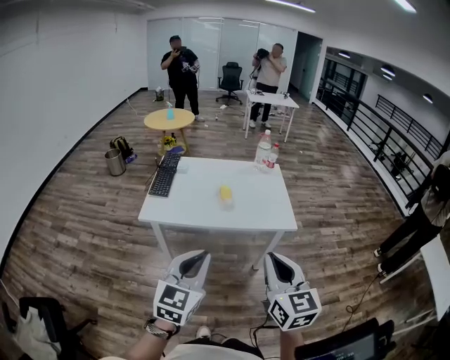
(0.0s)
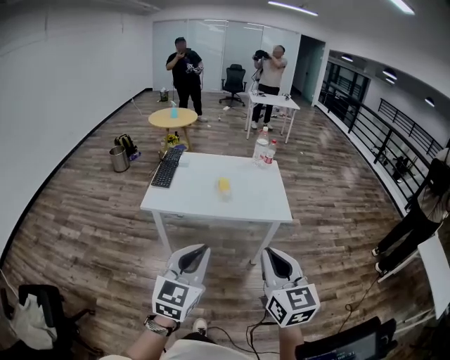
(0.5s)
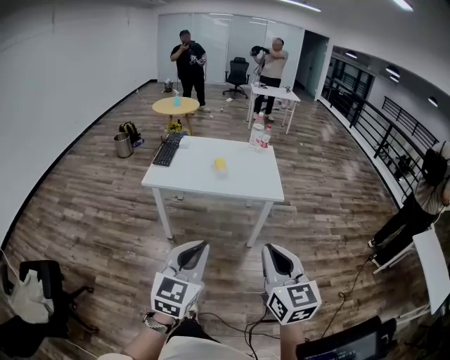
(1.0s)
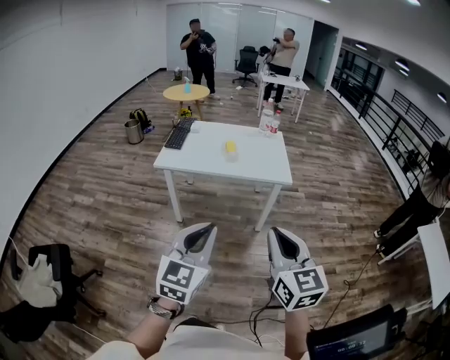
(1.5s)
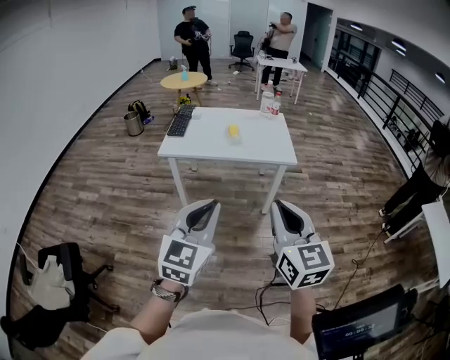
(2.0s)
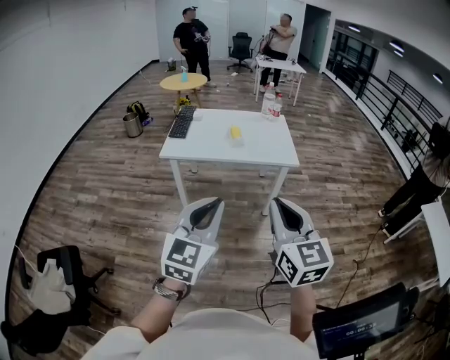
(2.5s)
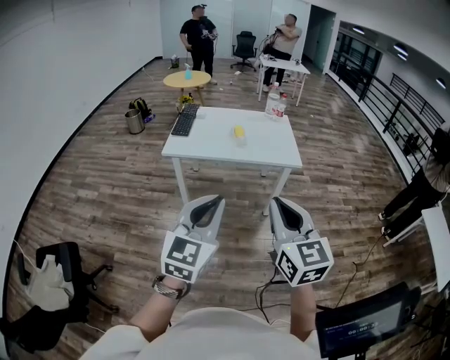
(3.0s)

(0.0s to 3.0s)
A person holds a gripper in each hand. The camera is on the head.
0.0s - 1.5s: Both grippers travel together backward, some 20 cm.
1.5s - 3.0s: The left gripper ends up some 5 cm from where it was; the right gripper shifts roughly 5 cm to the left.

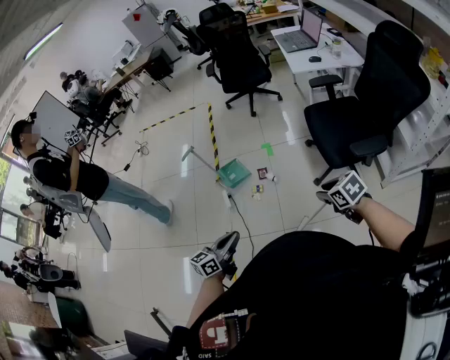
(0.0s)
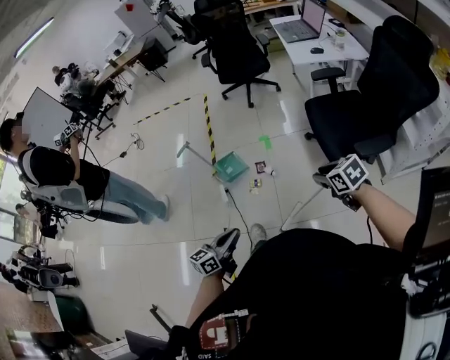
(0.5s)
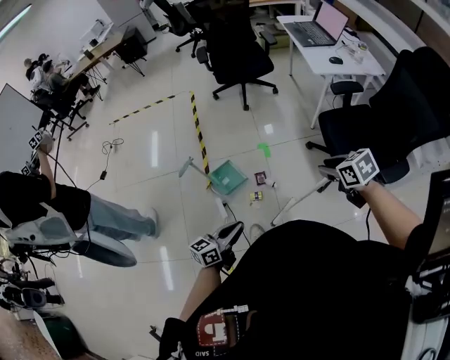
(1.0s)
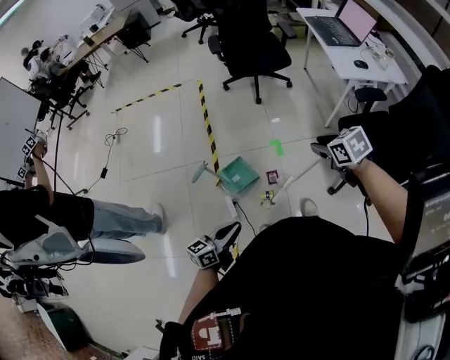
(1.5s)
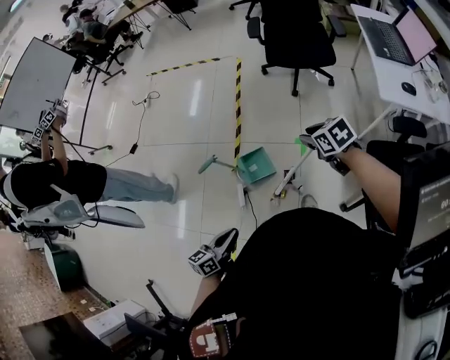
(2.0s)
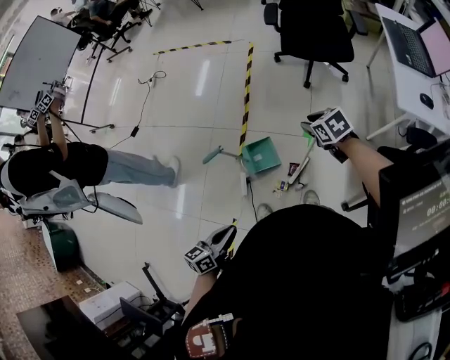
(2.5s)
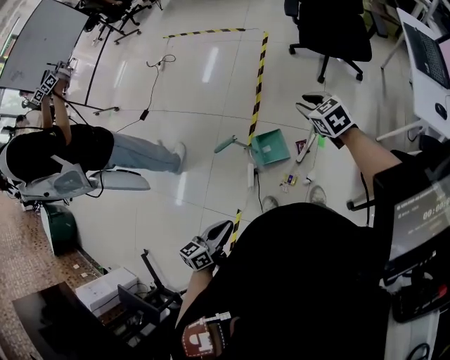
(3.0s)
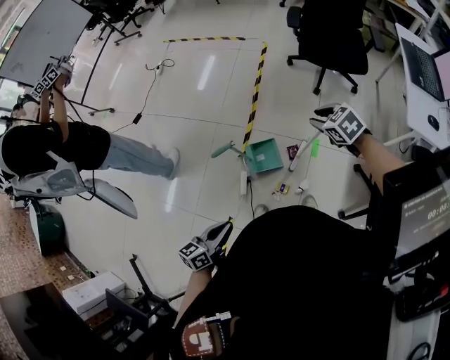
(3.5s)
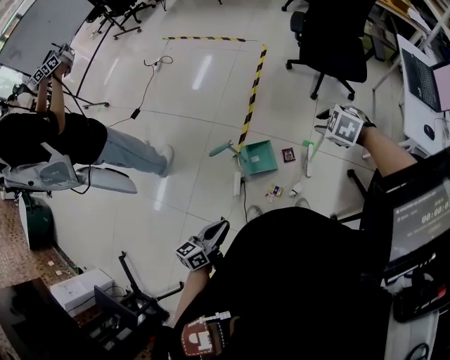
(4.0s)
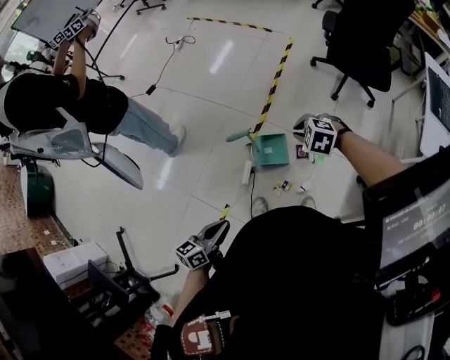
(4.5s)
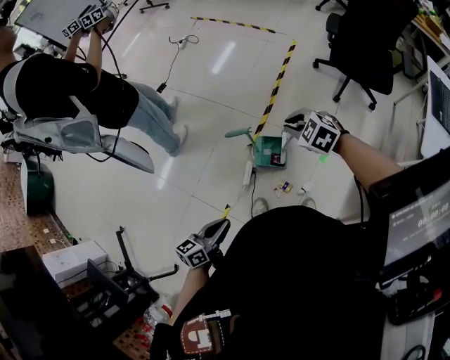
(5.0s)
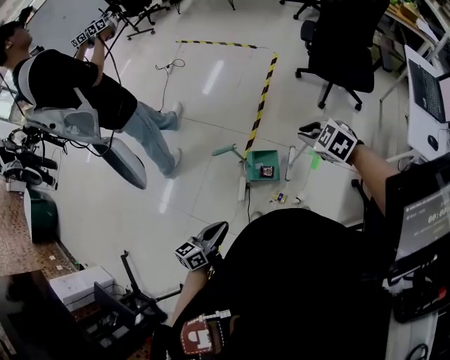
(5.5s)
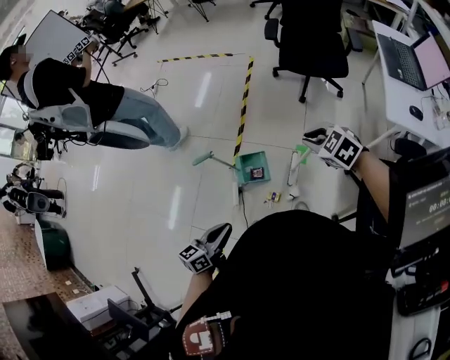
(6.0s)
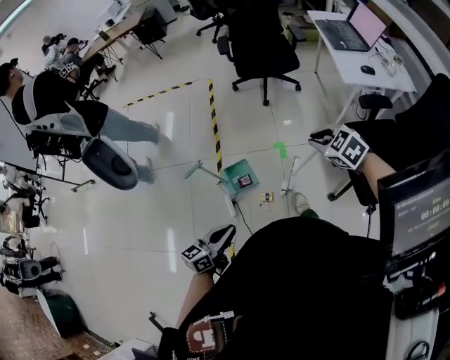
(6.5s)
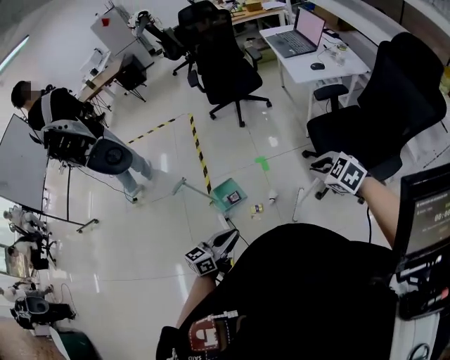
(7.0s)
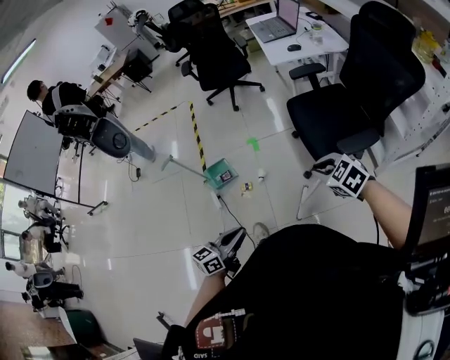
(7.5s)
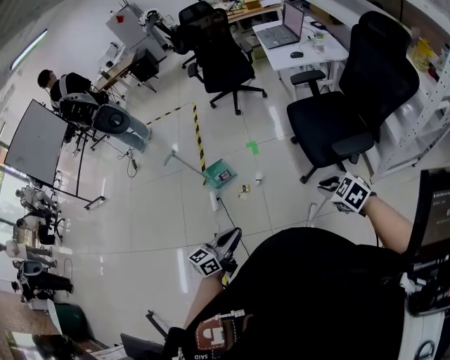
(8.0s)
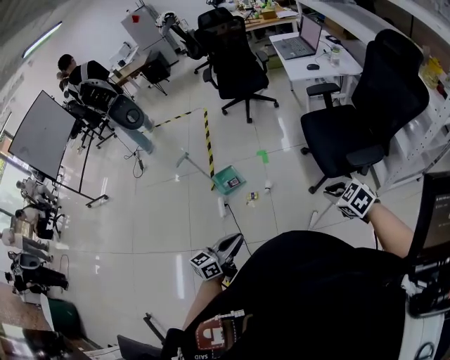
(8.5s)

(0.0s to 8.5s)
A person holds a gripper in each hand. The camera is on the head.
0.0s - 2.0s: The right gripper moves approximately 70 cm. Meanwhile the left gripper moves roughly 40 cm, and rotates approximately 20 degrees.
2.0s - 4.0s: The left gripper travels to the left by approximately 10 cm, while the right gripper travels to the left and forward by some 10 cm, and twists roughly 50 degrees counterclockwise, seen from behind.
4.0s - 6.5s: The left gripper shifts by roughly 10 cm, and turns by some 30 degrees; the right gripper ends up about 25 cm from where it was, and swivels some 40 degrees.
6.5s - 8.5s: The grippers both shift backward and to the right by some 40 cm.

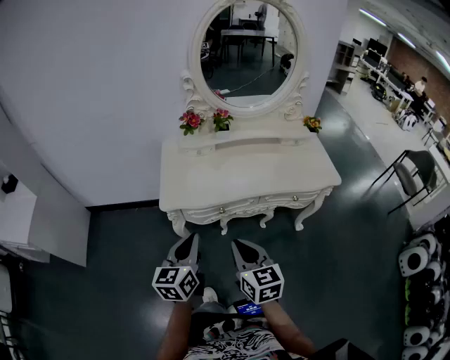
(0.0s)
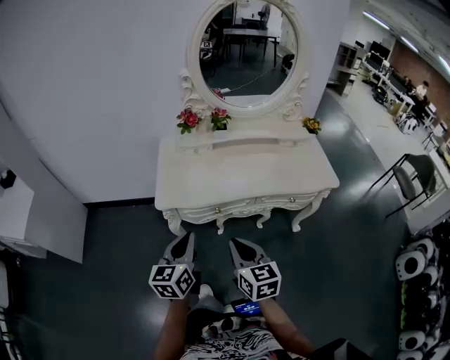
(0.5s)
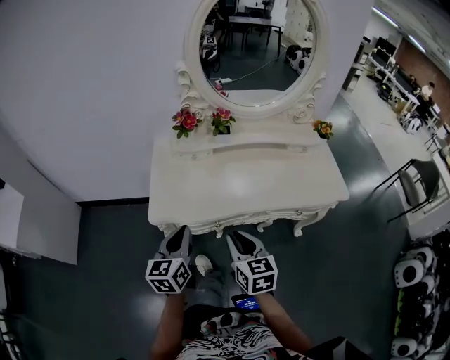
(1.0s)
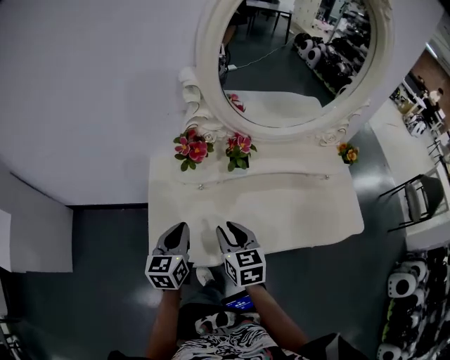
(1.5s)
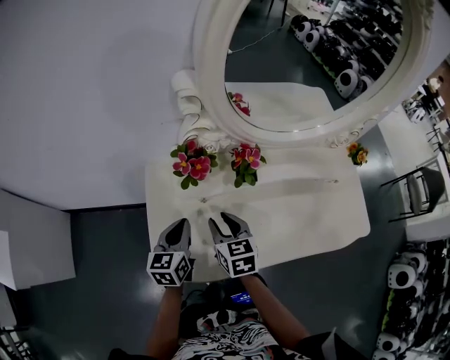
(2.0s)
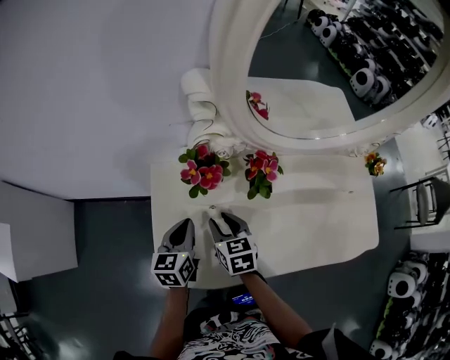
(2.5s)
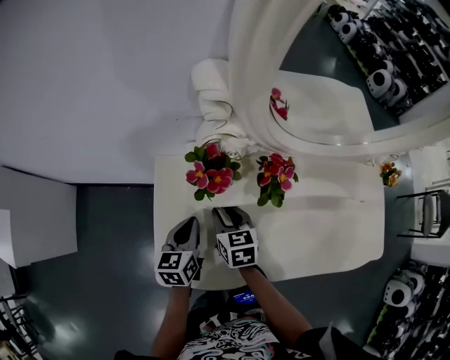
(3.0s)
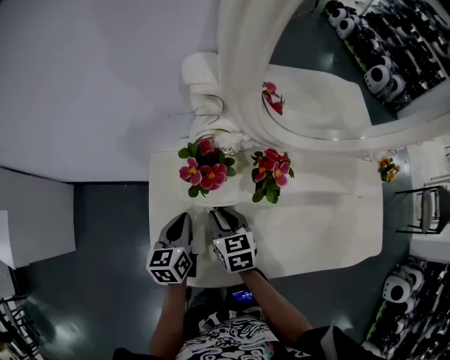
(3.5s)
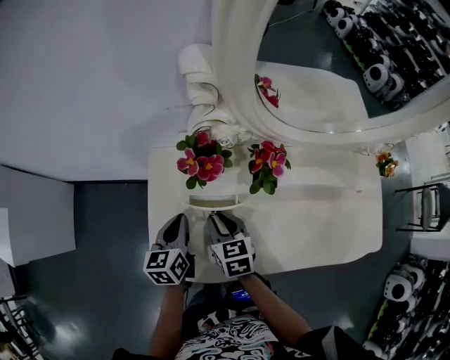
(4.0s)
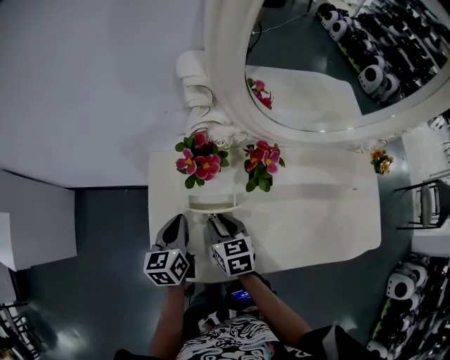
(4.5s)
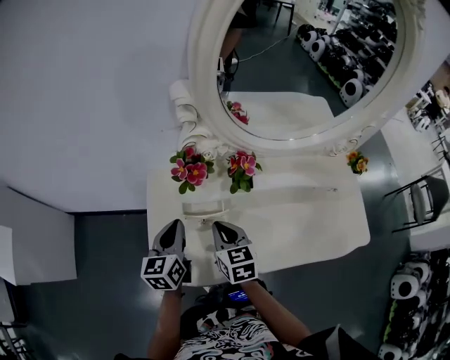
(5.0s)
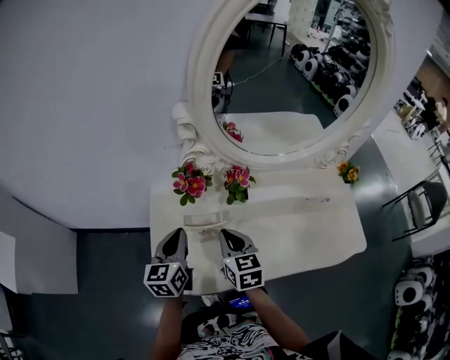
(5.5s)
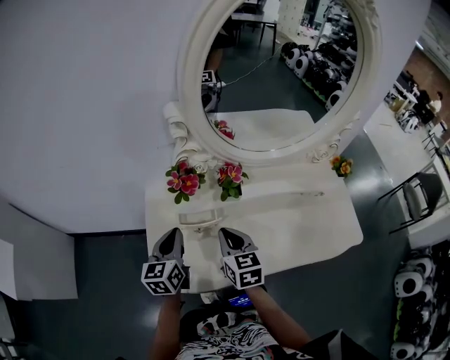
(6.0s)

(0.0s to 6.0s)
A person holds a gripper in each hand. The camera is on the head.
0.0s - 2.0s: Both grippers are carried forward, about 40 cm. The right gripper opens up.
2.0s - 4.0s: Both grippers travel together downward, roughly 5 cm.
4.0s - 6.0s: The right gripper moves upward and to the right, roughly 15 cm. Meanwhile the left gripper goes about 10 cm upward.

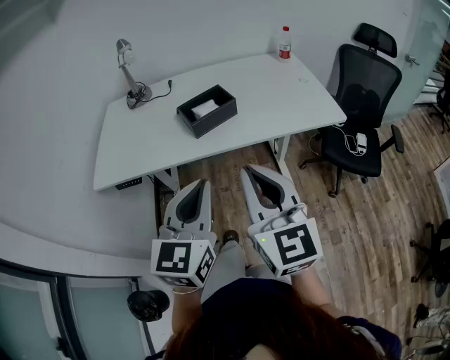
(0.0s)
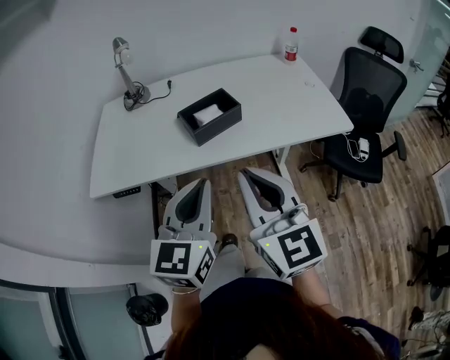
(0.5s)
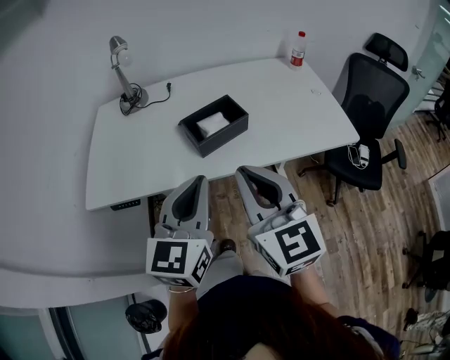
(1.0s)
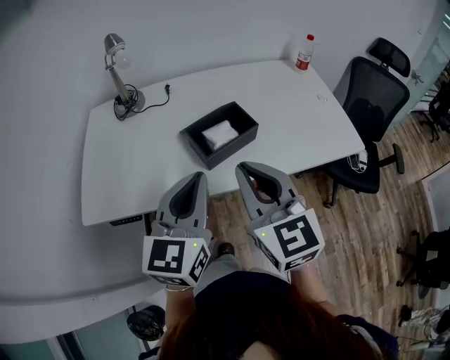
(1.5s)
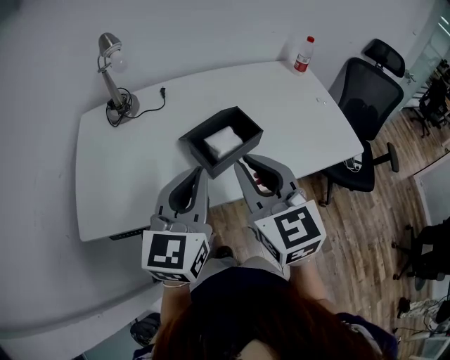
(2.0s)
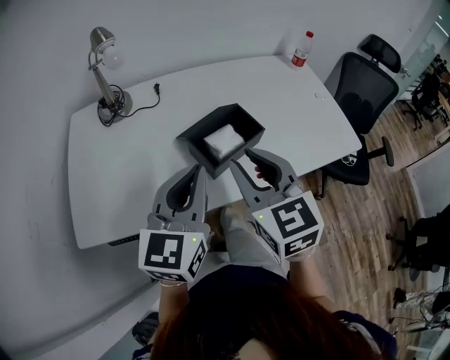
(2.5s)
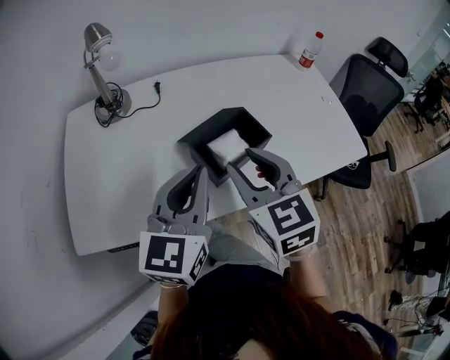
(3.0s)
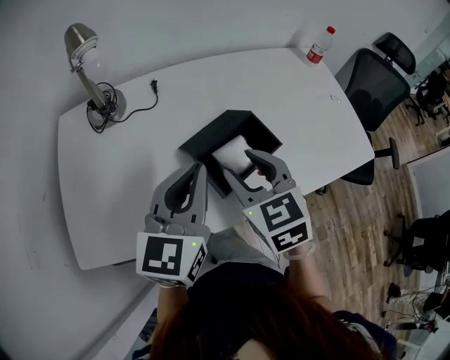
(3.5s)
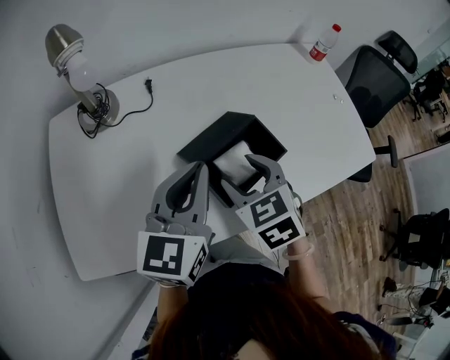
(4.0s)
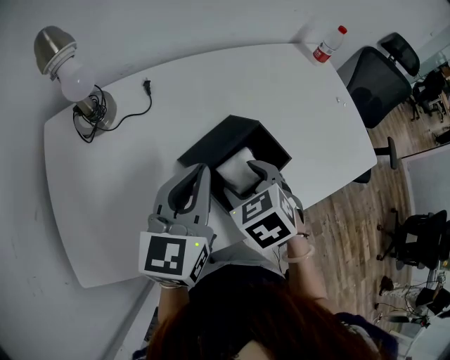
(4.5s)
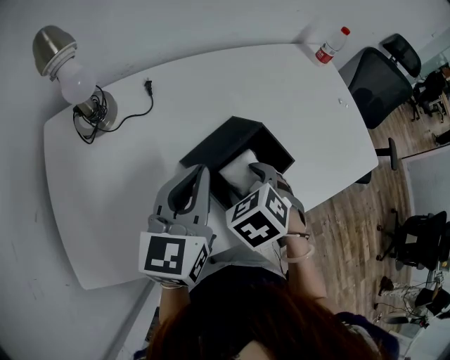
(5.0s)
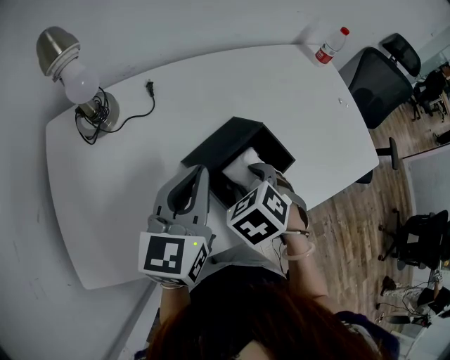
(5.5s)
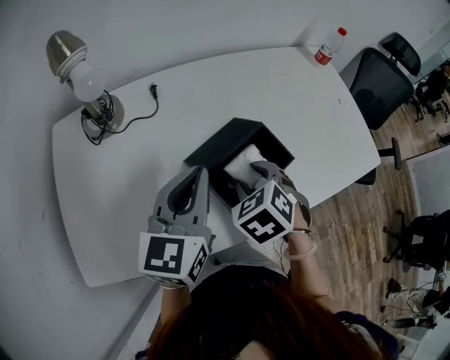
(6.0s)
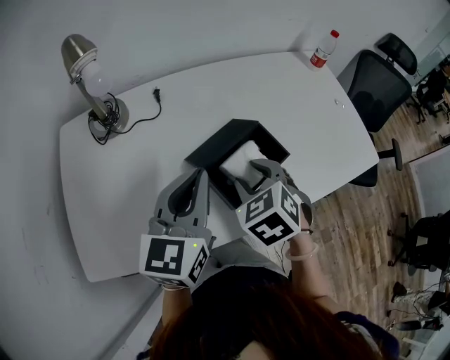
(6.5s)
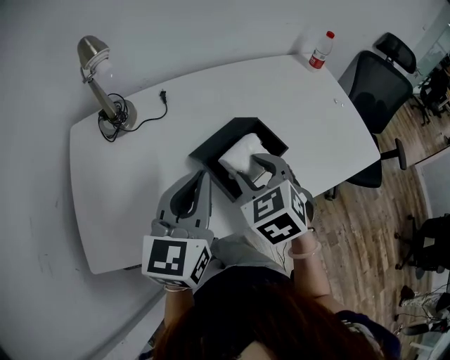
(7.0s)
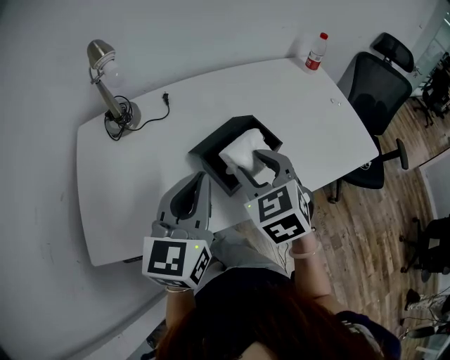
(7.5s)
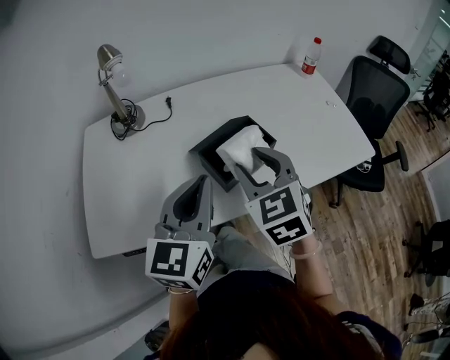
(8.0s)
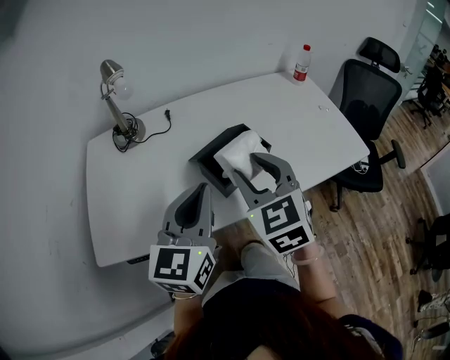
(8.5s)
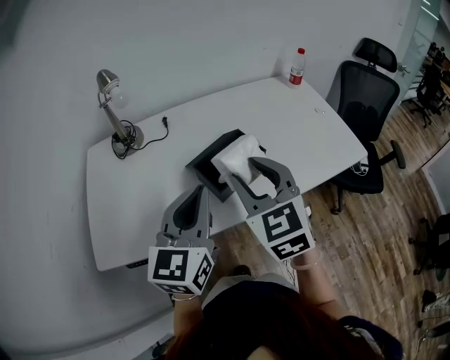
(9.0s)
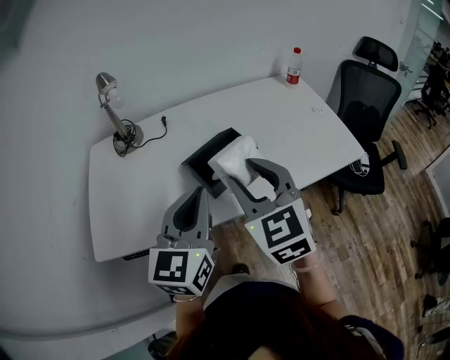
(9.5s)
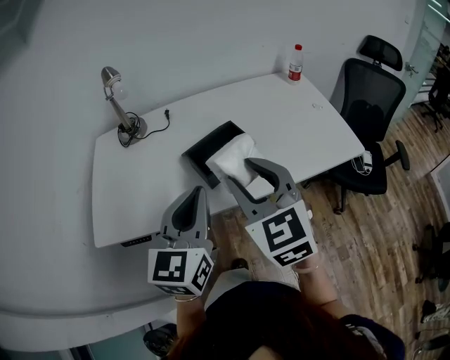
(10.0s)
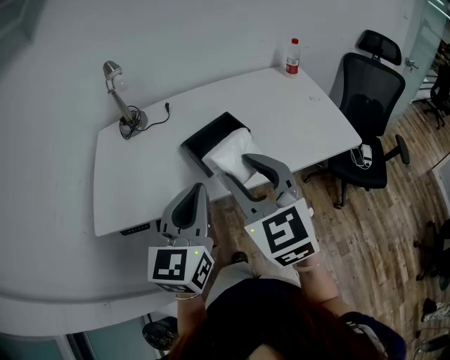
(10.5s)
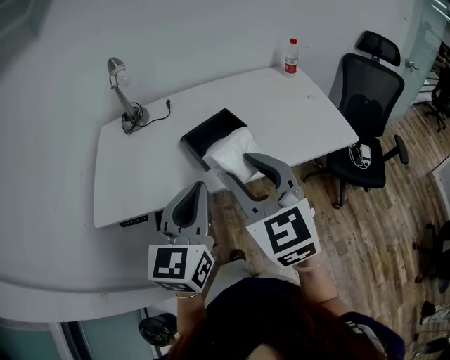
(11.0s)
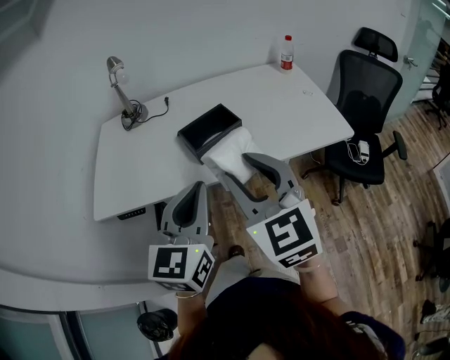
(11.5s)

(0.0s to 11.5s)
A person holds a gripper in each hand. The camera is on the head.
0.0s - 2.0s: The left gripper heads forward, covering about 25 cm; the right gripper moves forward and to the left, some 25 cm.
2.0s - 4.0s: The left gripper is displaced forward by about 15 cm; the right gripper travels downward and forward by approximately 20 cm, tilts its fingers about 30 degrees downward, and opens.
4.0s - 6.0s: The right gripper changes its angle by roughly 20 degrees.
6.0s - 7.5s: The left gripper moves backward, some 10 cm. The right gripper goes roughly 10 cm upward, and rotates approximately 30 degrees.
7.5s - 9.5s: The left gripper moves backward and to the right, some 10 cm; the right gripper is displaced upward and backward by approximately 10 cm.
9.5s - 11.5s: Both grippers travel together backward, some 15 cm.
